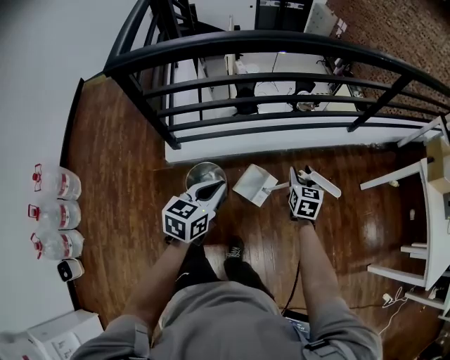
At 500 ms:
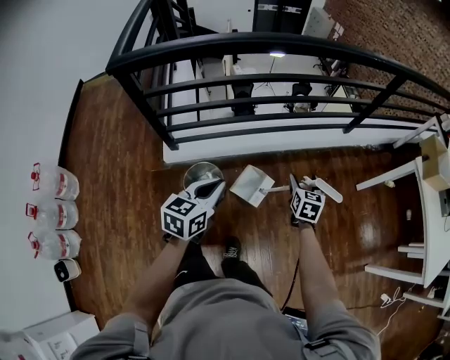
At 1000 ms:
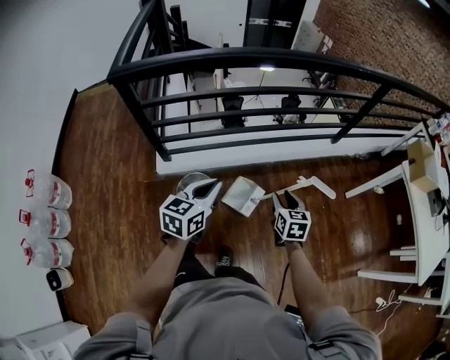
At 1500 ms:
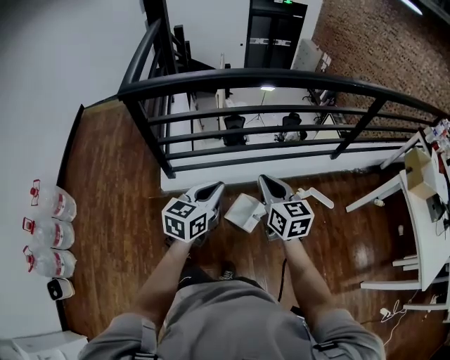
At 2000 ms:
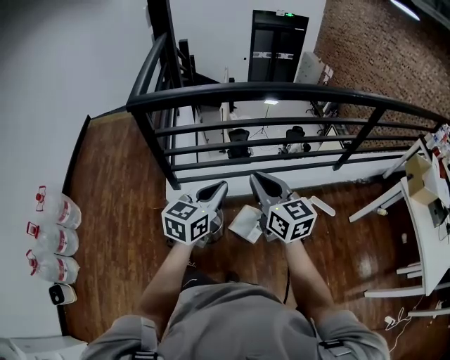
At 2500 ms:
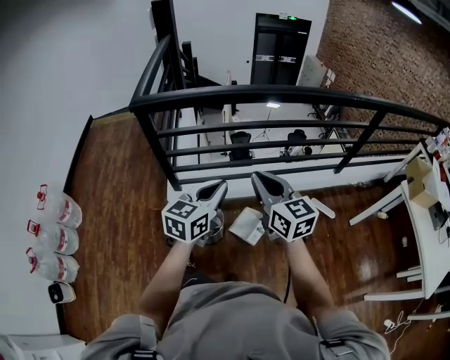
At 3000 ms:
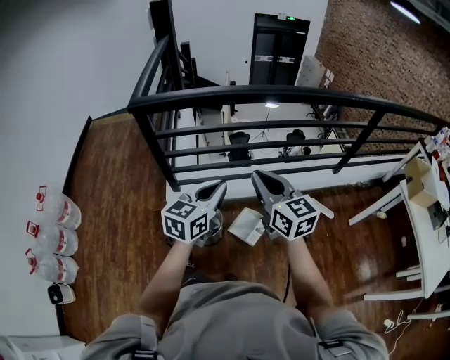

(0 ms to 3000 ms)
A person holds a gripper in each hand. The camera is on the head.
0 ms - 1500 ms: The left gripper travels upward by approximately 10 cm. The right gripper travels upward, to the left and backward by roughly 25 cm, swivels roughly 30 degrees, and closes.
1500 ms - 3000 ms: Both grippers move upward, some 5 cm.

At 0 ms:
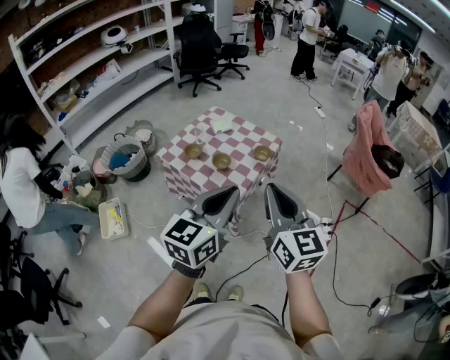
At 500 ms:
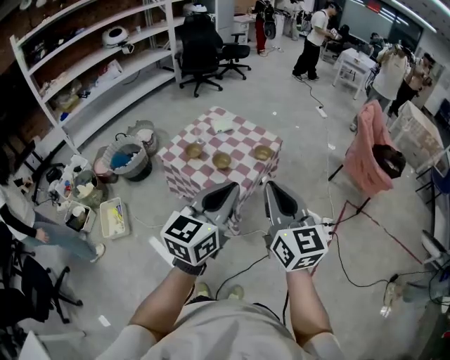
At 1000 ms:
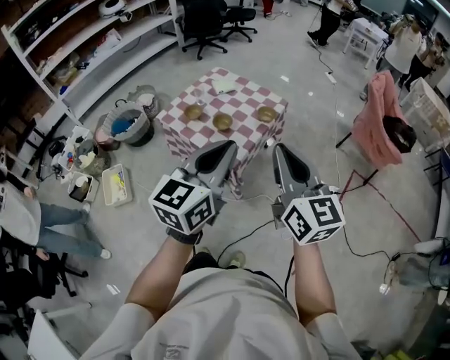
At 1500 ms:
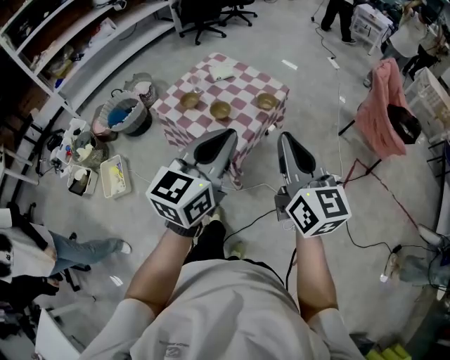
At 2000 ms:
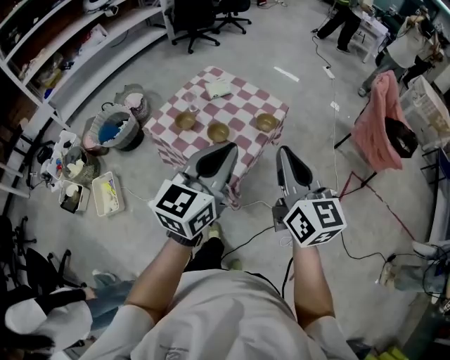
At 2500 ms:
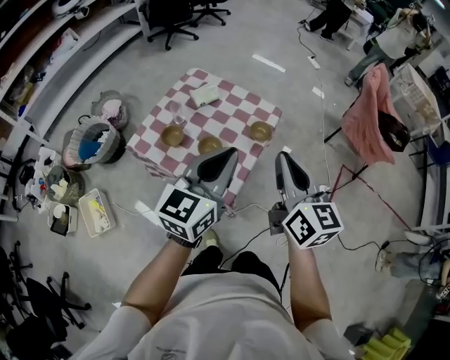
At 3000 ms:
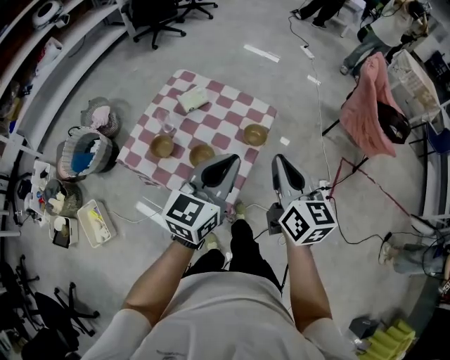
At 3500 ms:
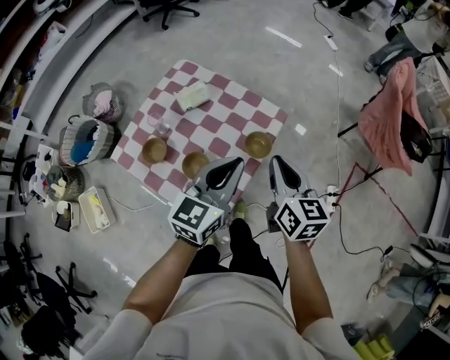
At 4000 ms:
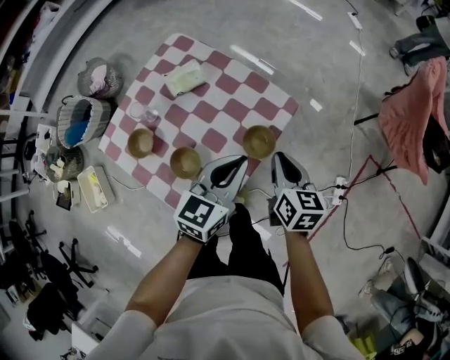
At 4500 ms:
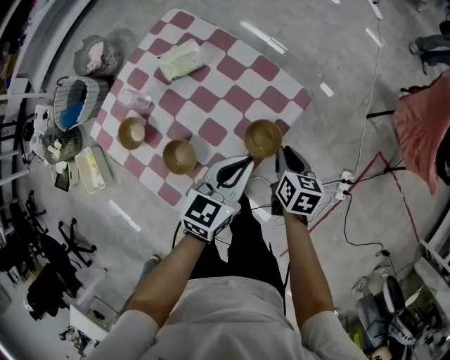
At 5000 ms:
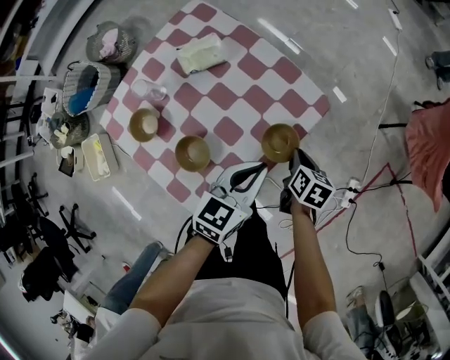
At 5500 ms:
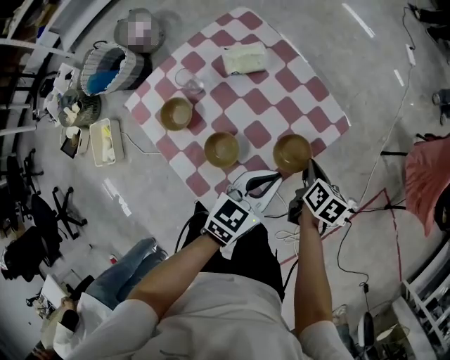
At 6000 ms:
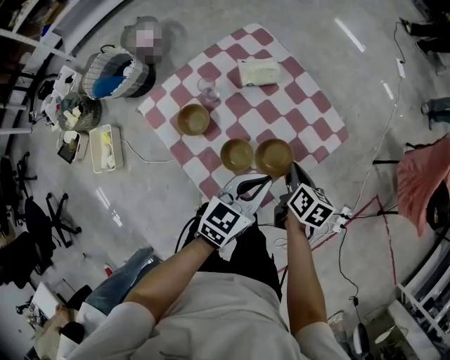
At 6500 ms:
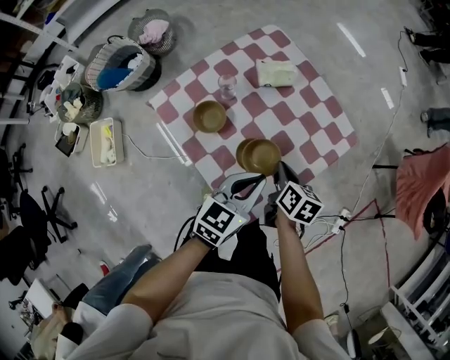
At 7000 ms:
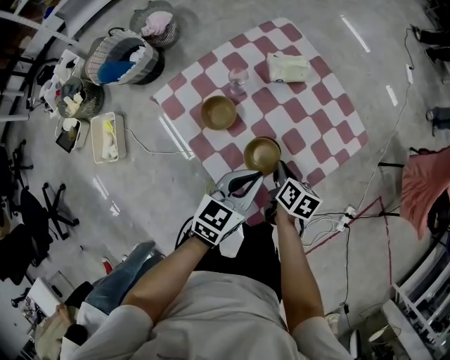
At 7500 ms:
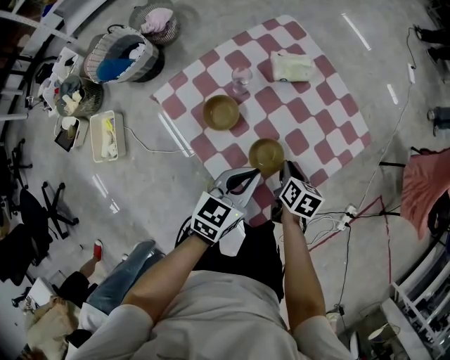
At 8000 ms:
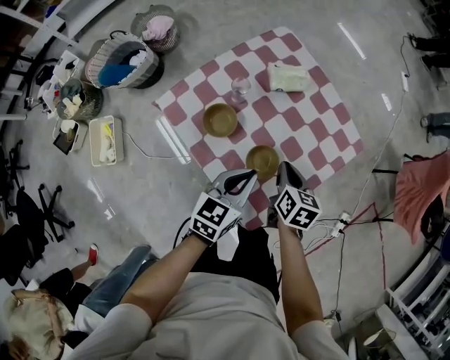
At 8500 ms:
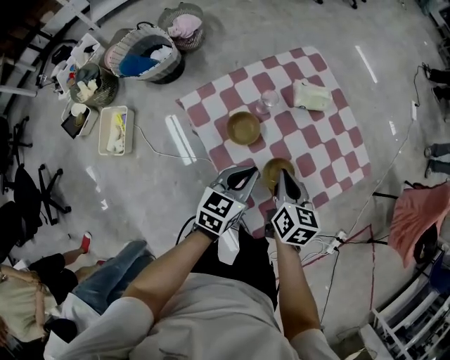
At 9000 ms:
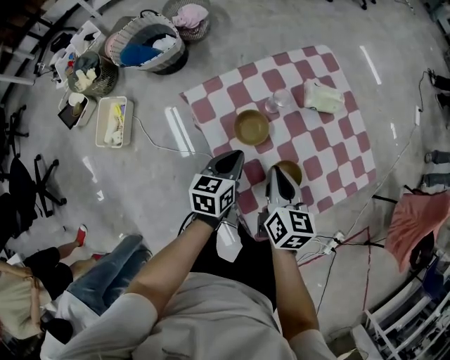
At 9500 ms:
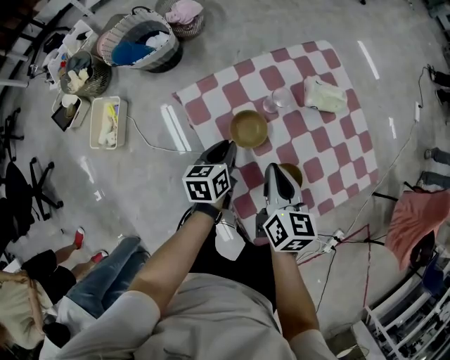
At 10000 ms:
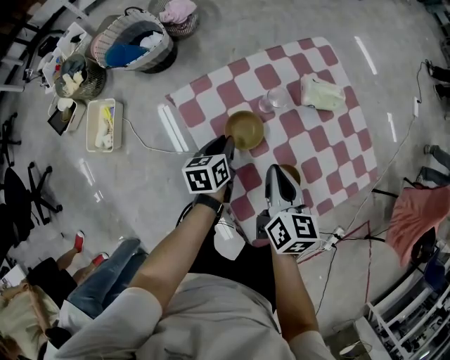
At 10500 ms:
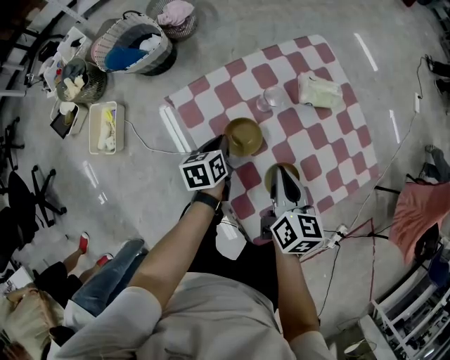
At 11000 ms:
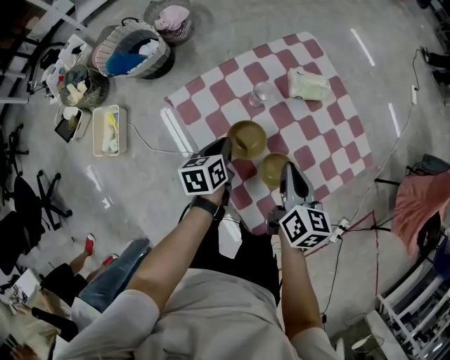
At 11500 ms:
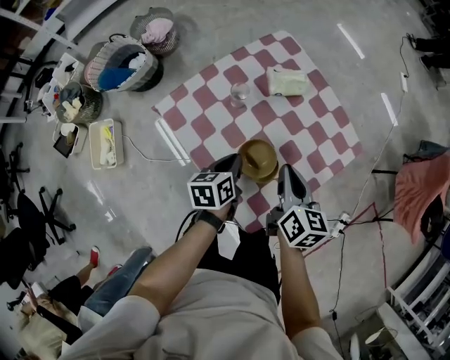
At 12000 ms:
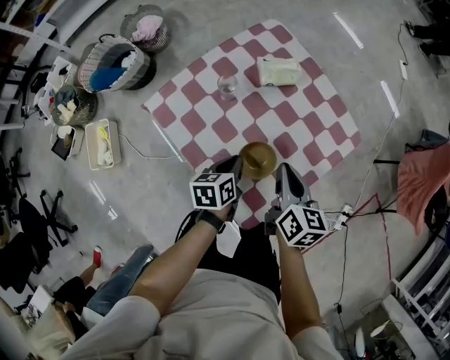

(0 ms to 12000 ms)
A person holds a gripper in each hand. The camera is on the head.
0 ms - 2000 ms: The grippers both shift forward by about 15 cm.
2000 ms - 4000 ms: The two grippers go approximately 50 cm forward and downward. The right gripper angles its fingers downward, by roughly 30 degrees.
4000 ms - 6000 ms: The right gripper heads to the left and downward, covering about 15 cm; the left gripper travels to the left and backward by about 10 cm.
6000 ms - 8000 ms: Both grippers move to the left, roughly 15 cm.
8000 ms - 10000 ms: The left gripper goes roughly 25 cm to the left, downward and forward, and rotates approximately 40 degrees, while the right gripper is displaced to the left by some 15 cm.
10000 ms - 12000 ms: The left gripper is displaced to the right and backward by approximately 15 cm; the right gripper moves to the right, roughly 15 cm.

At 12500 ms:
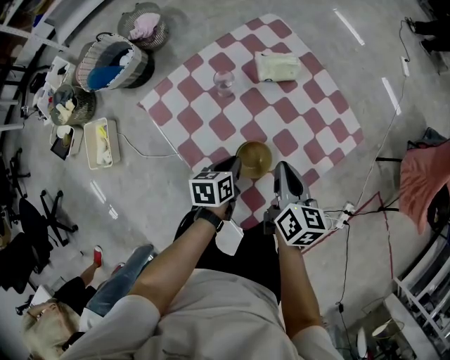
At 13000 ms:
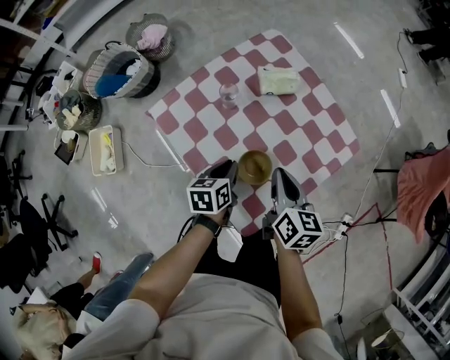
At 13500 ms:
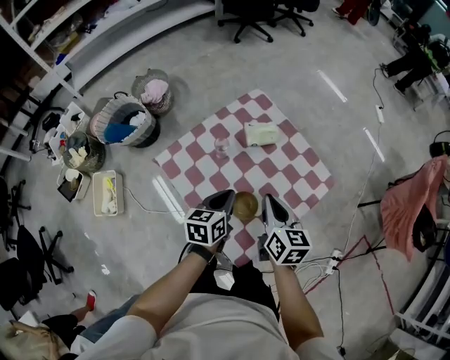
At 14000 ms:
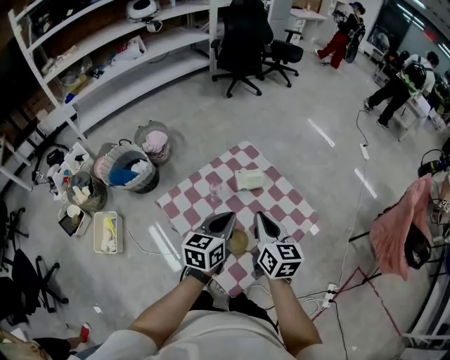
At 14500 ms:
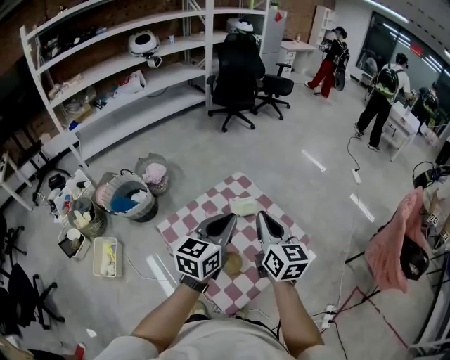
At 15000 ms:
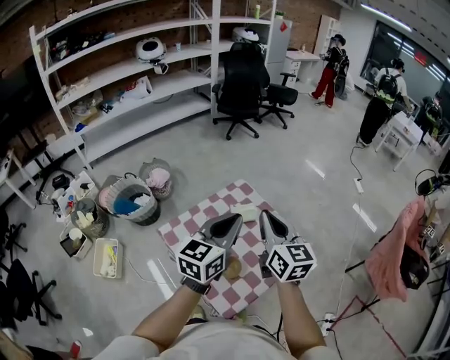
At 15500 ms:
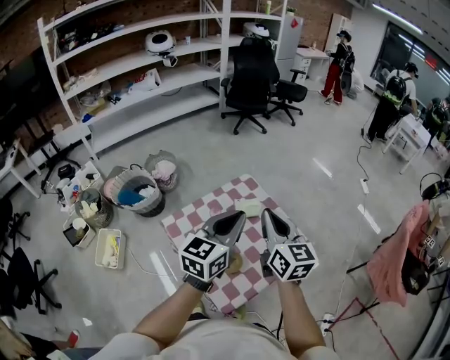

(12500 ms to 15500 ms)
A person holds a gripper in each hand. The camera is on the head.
12500 ms - 14000 ms: The two grippers go about 25 cm upward. The left gripper swivels approximately 40 degrees.
14000 ms - 15500 ms: Both grippers move upward, approximately 15 cm.

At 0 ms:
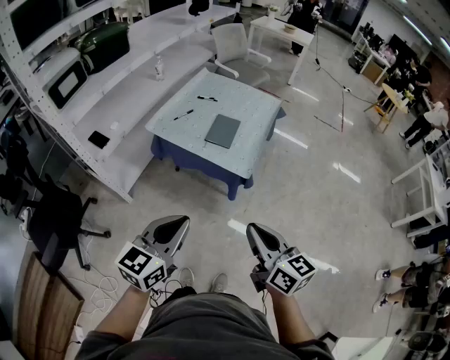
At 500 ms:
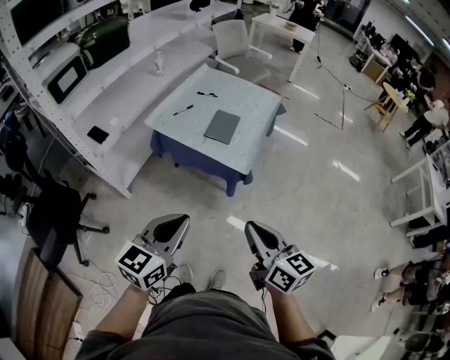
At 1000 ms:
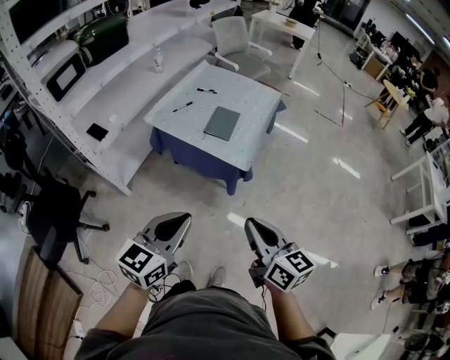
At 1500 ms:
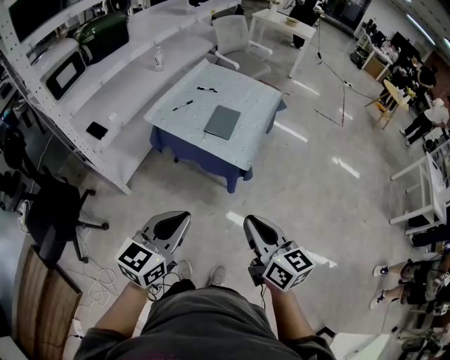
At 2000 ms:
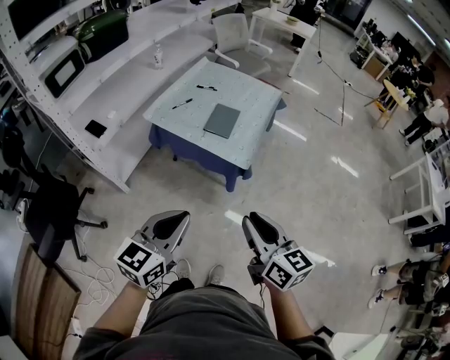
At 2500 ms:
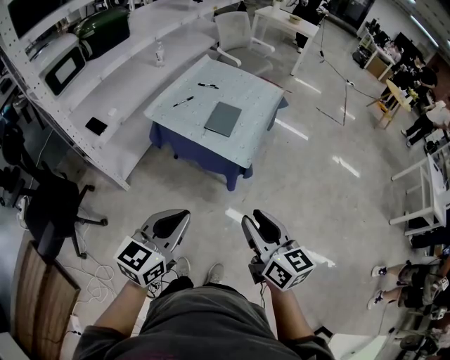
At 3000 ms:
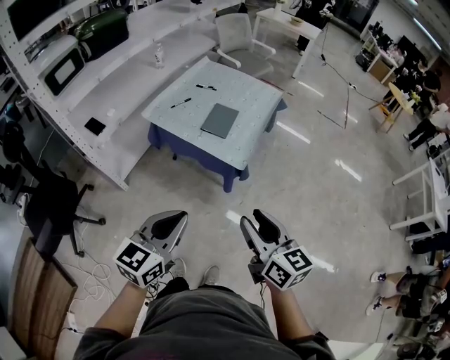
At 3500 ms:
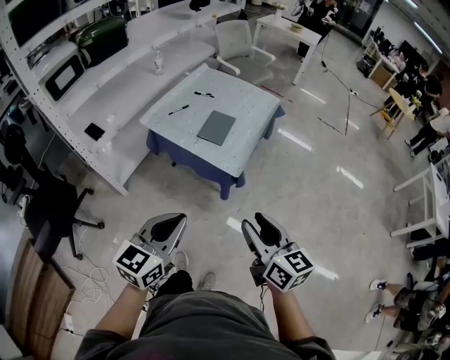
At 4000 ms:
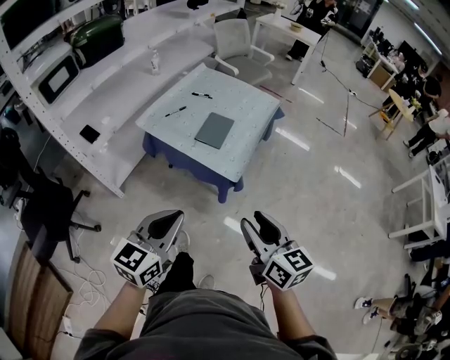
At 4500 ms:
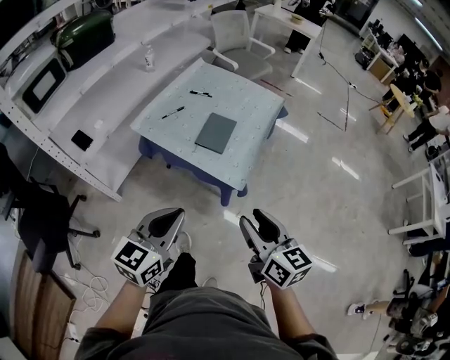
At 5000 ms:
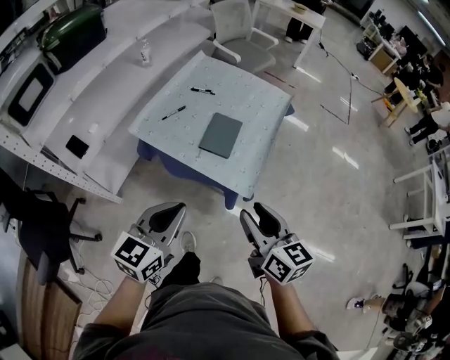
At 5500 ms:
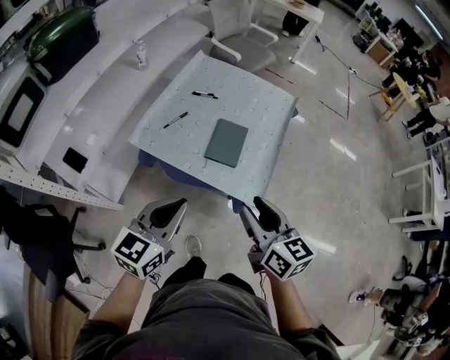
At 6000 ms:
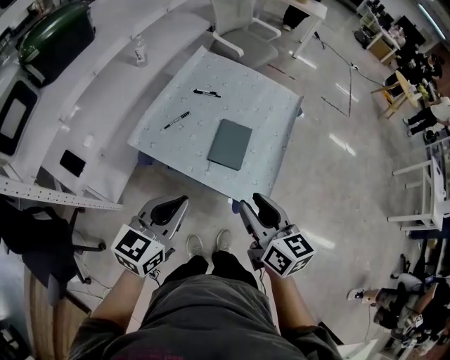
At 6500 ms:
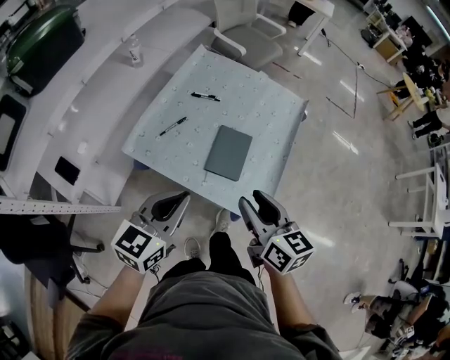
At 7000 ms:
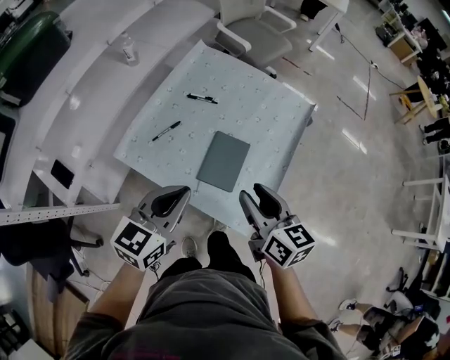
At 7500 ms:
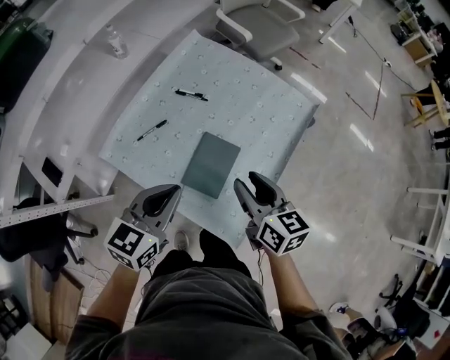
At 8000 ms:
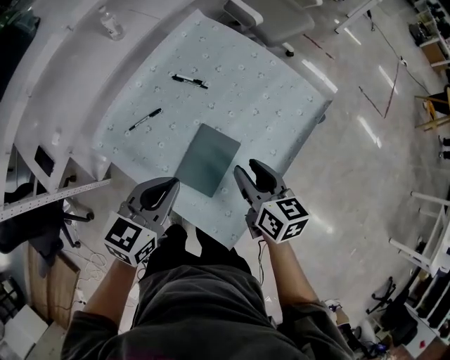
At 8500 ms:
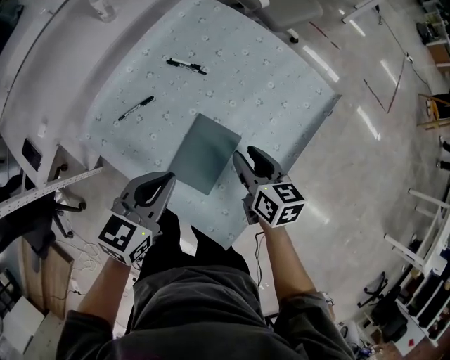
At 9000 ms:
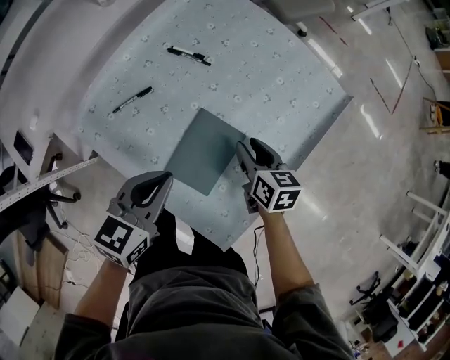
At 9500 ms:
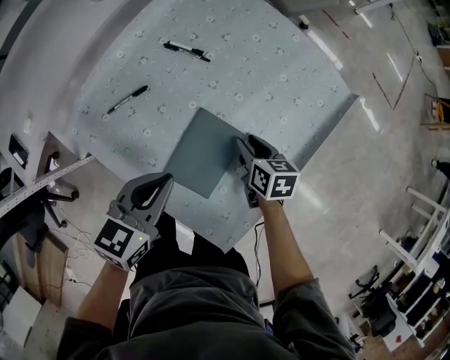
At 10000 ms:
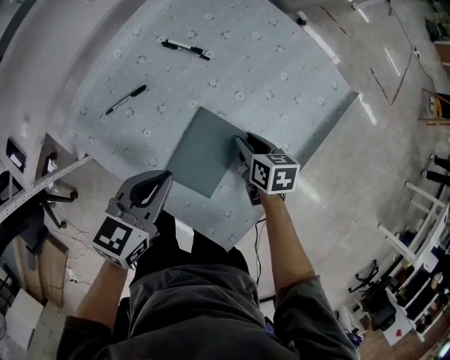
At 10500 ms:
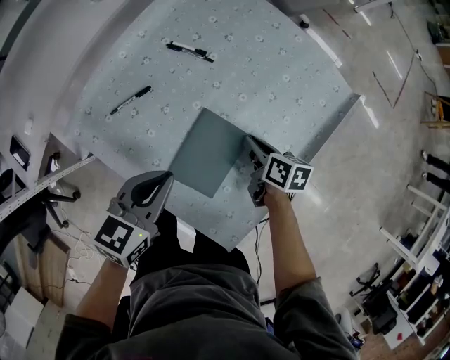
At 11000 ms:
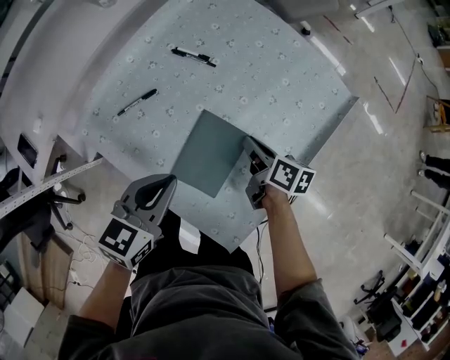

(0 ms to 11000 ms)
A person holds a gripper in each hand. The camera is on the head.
0 ms - 2000 ms: The two grippers keep their place.
2000 ms - 3500 ms: The grippers both shift to the right by roughly 5 cm. The right gripper opens its fingers.
3500 ms - 5500 ms: The grippers both shift forward and to the left by about 30 cm.
5500 ms - 7500 ms: Both grippers travel together forward, some 30 cm.
7500 ms - 9000 ms: The right gripper is displaced downward and forward by about 25 cm. The left gripper travels downward by some 15 cm.
9000 ms - 11000 ms: The right gripper turns by approximately 30 degrees, and closes its fingers.
